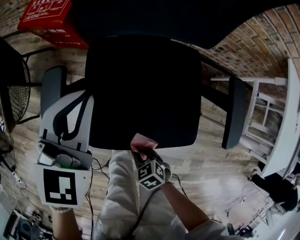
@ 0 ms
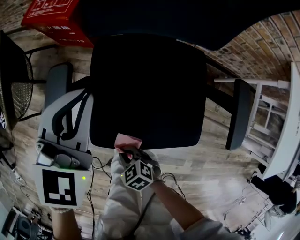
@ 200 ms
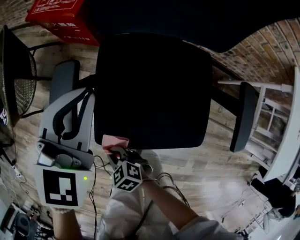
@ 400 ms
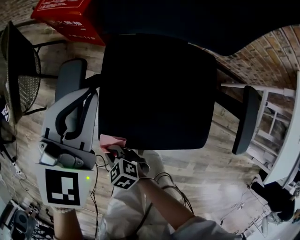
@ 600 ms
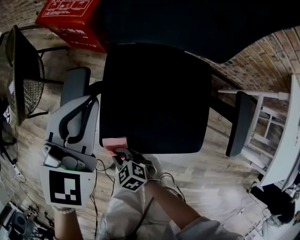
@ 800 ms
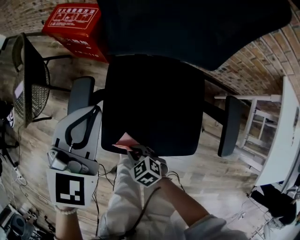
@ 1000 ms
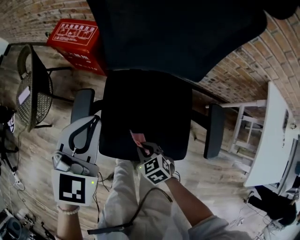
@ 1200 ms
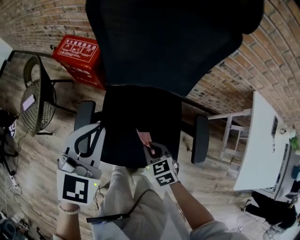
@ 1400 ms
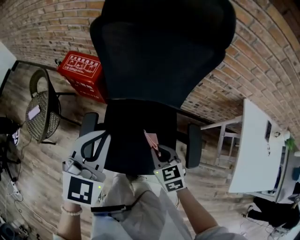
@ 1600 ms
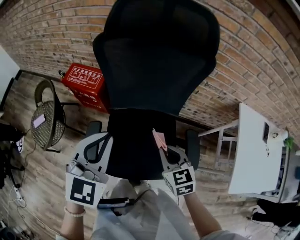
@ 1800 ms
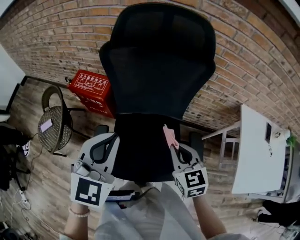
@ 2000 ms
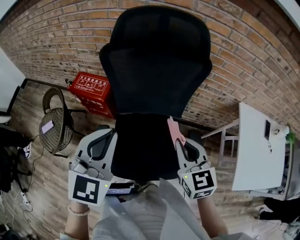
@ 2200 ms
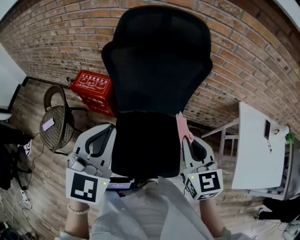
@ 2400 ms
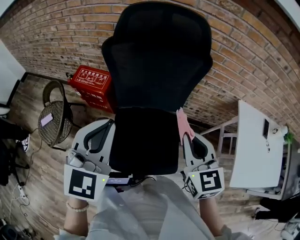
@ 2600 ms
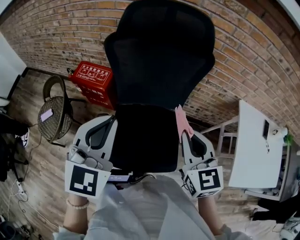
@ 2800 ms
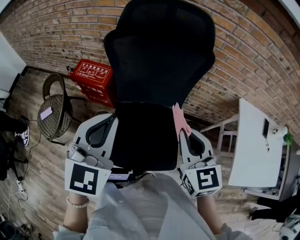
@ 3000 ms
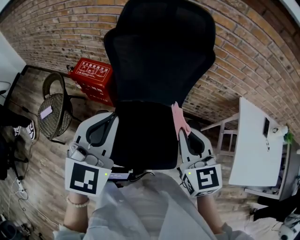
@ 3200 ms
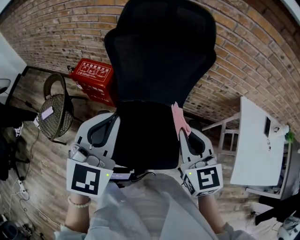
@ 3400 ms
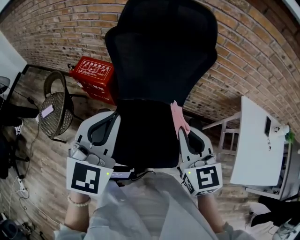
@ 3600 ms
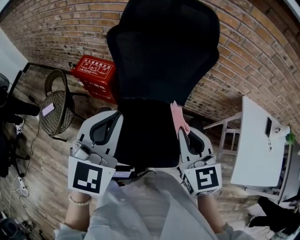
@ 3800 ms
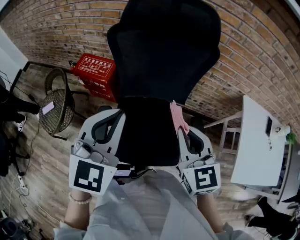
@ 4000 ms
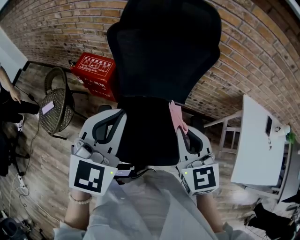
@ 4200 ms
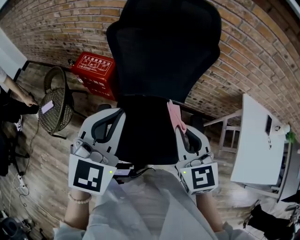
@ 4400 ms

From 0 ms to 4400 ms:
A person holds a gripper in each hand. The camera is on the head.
From 0 ms to 1400 ms: The left gripper travels upward by approximately 20 cm. The right gripper is displaced upward, forward and to the right by roughly 30 cm, and turns by roughly 20 degrees.
From 1400 ms to 3000 ms: The left gripper moves upward, approximately 20 cm; the right gripper goes some 35 cm upward, and points its fingers about 30 degrees further upward.
From 3000 ms to 4400 ms: The grippers move only a little.

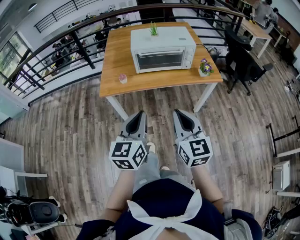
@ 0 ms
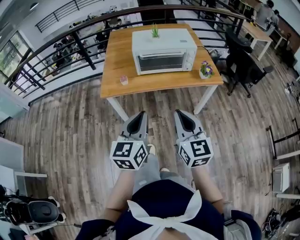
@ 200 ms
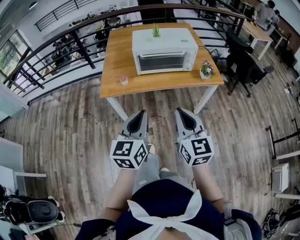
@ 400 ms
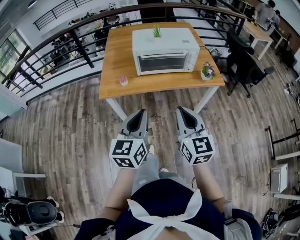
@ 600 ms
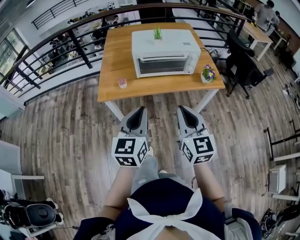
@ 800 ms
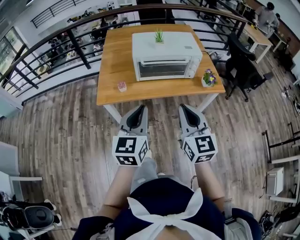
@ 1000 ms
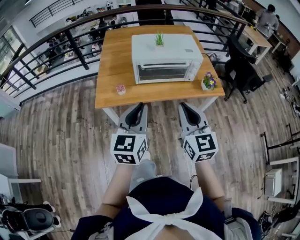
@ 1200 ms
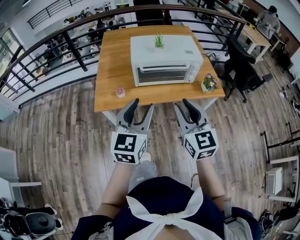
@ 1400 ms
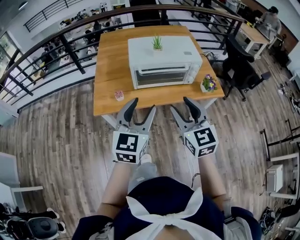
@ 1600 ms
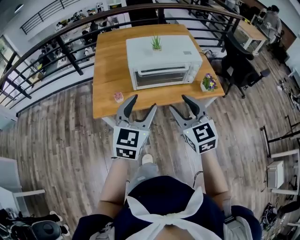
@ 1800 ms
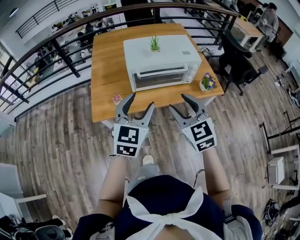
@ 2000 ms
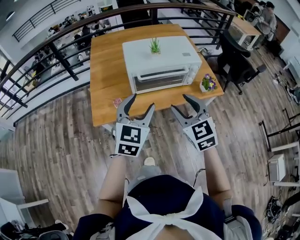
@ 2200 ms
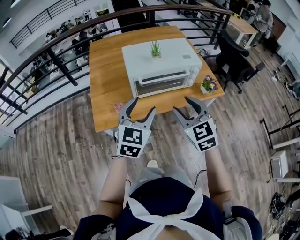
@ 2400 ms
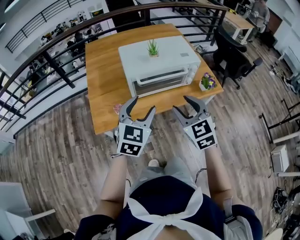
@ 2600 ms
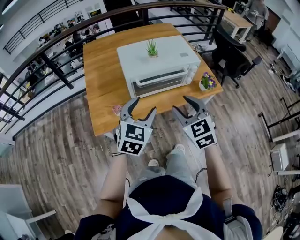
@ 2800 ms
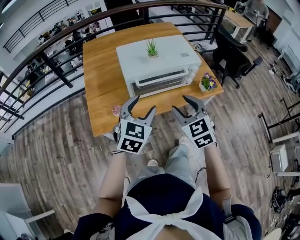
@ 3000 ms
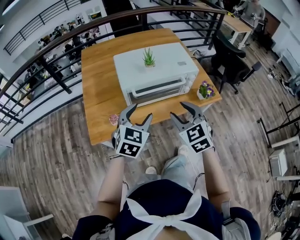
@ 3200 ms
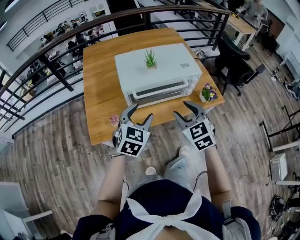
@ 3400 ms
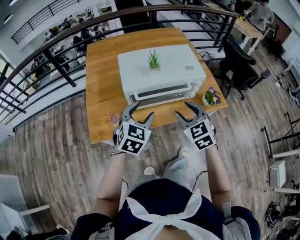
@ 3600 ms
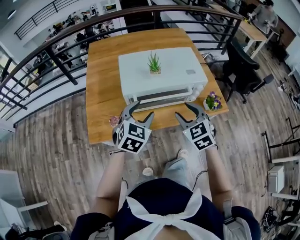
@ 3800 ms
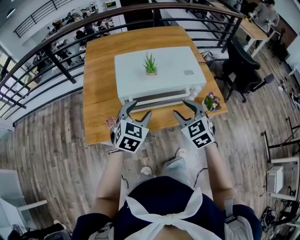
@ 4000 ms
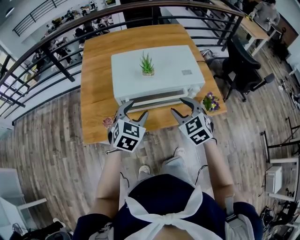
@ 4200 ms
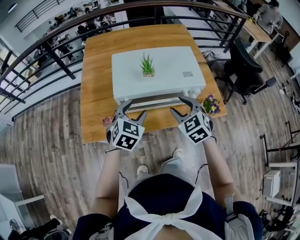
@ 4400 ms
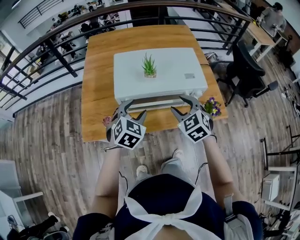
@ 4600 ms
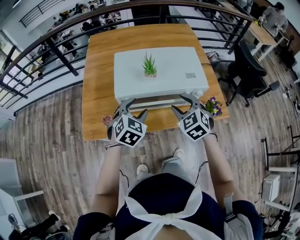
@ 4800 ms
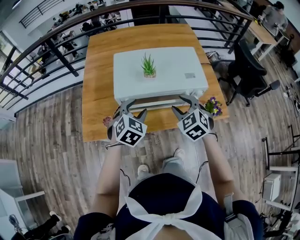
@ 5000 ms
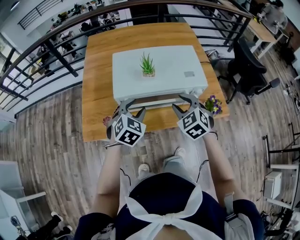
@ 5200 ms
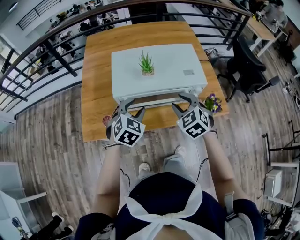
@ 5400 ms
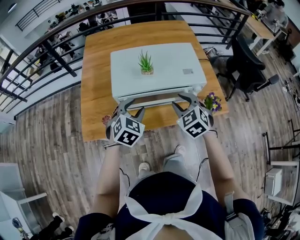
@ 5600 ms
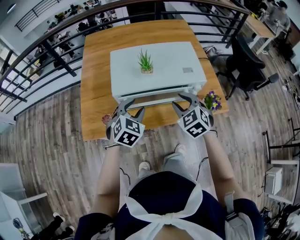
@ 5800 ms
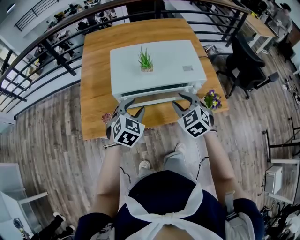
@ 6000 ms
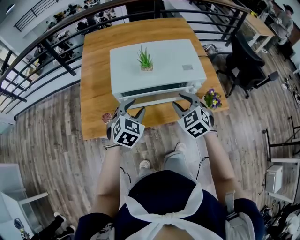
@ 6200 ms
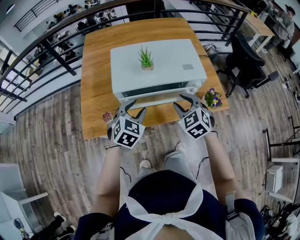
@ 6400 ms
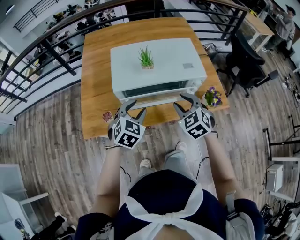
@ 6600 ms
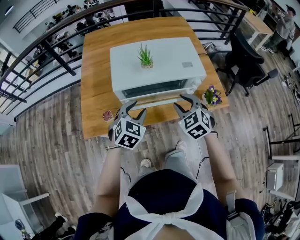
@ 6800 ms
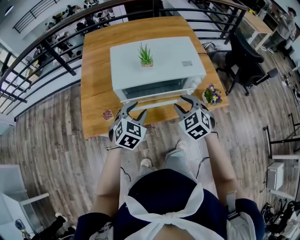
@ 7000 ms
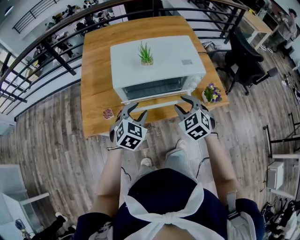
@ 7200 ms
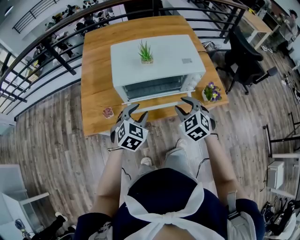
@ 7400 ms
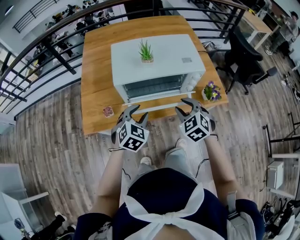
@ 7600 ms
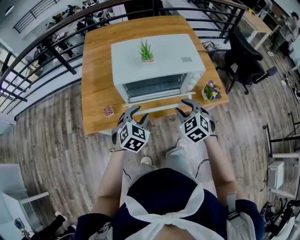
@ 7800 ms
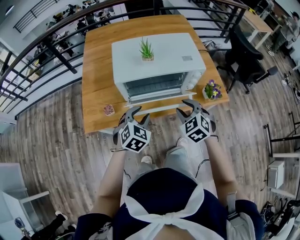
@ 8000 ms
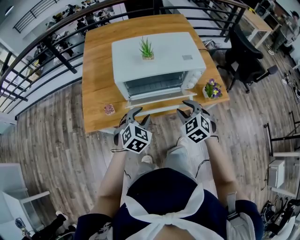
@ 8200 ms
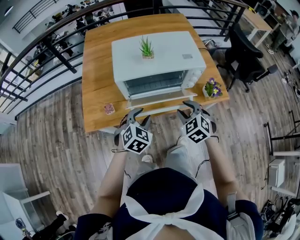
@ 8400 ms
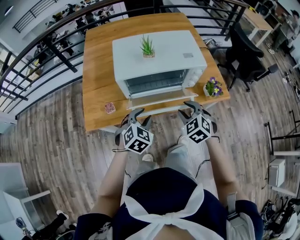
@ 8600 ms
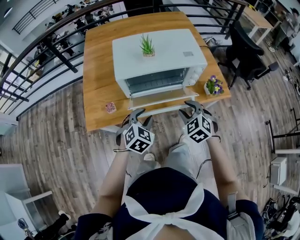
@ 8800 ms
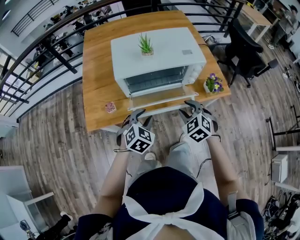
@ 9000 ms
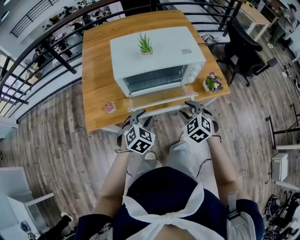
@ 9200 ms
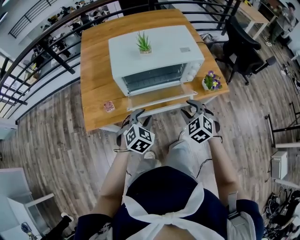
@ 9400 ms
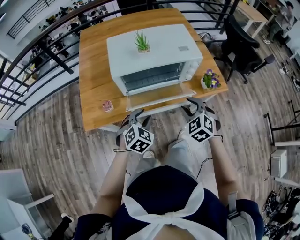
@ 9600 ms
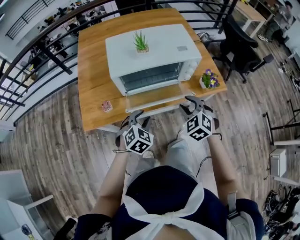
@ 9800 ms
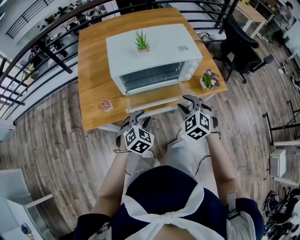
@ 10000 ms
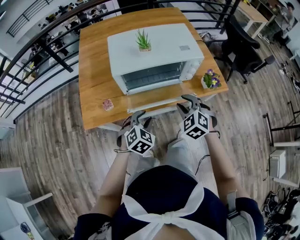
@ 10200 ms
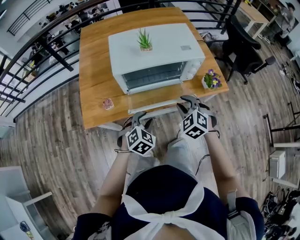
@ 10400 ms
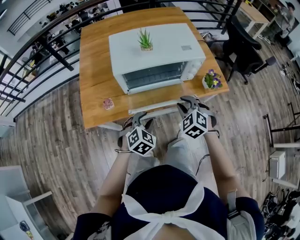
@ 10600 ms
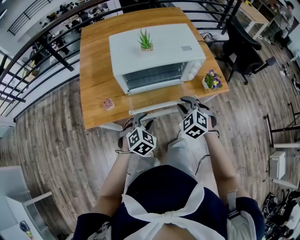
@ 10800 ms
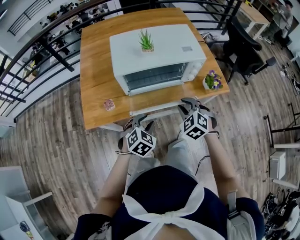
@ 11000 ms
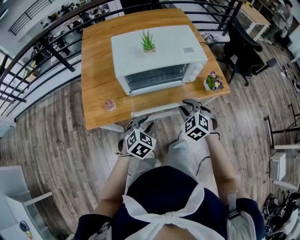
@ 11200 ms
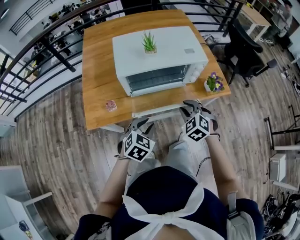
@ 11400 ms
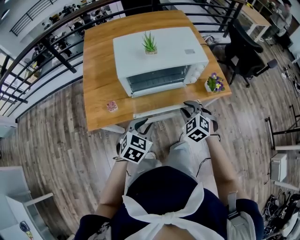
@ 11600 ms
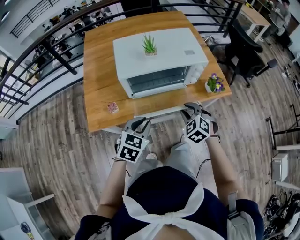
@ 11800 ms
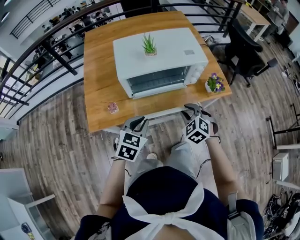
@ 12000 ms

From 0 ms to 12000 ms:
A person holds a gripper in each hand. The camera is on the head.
From 0 ms to 1600 ms: Both grippers travel together forward, about 15 cm. The right gripper opens up; the left gripper opens its fingers.
From 1600 ms to 3000 ms: Both grippers travel together forward and downward, some 10 cm. The left gripper changes its angle by approximately 20 degrees. Meanwhile the right gripper rotates approximately 20 degrees.
From 3000 ms to 4400 ms: The left gripper heads forward and downward, covering some 15 cm. Meanwhile the right gripper heads forward, covering some 15 cm.
From 4400 ms to 6000 ms: The grippers make only small movements.
From 6000 ms to 7600 ms: Both grippers travel together backward, some 5 cm.
From 7600 ms to 9000 ms: The left gripper shifts by some 5 cm. The right gripper changes place by approximately 5 cm.
From 9000 ms to 10400 ms: The grippers make only small movements.
From 10400 ms to 12000 ms: The left gripper heads upward, covering some 5 cm, changes its angle by about 20 degrees, and closes.

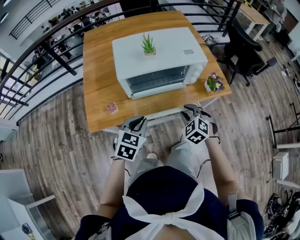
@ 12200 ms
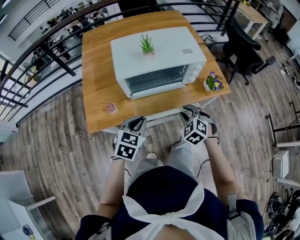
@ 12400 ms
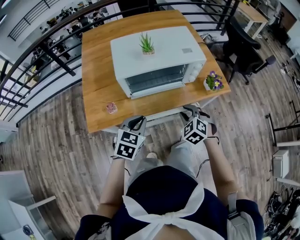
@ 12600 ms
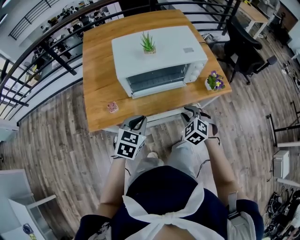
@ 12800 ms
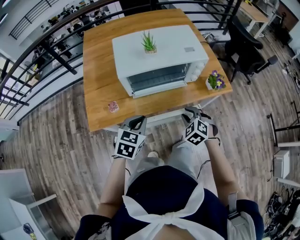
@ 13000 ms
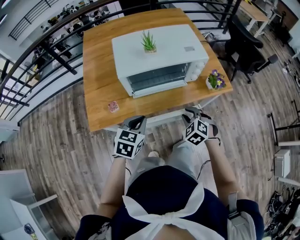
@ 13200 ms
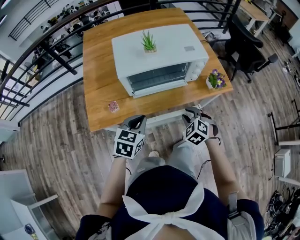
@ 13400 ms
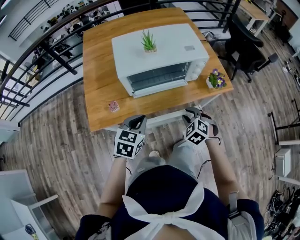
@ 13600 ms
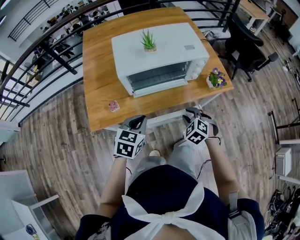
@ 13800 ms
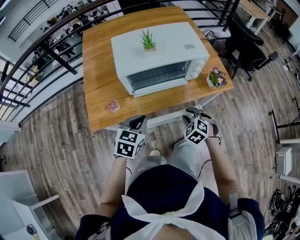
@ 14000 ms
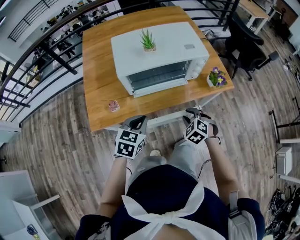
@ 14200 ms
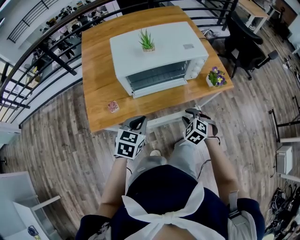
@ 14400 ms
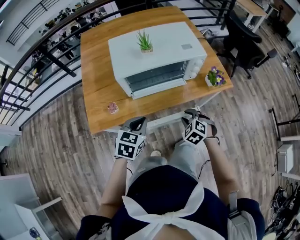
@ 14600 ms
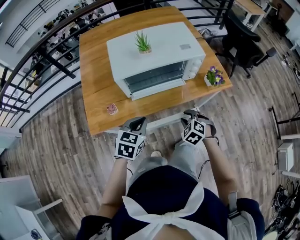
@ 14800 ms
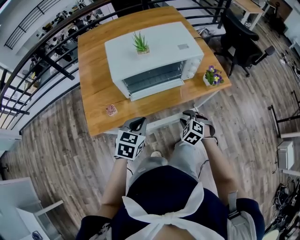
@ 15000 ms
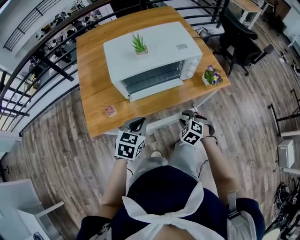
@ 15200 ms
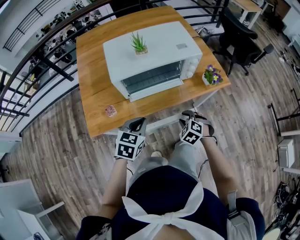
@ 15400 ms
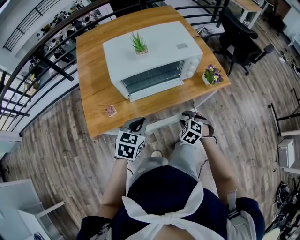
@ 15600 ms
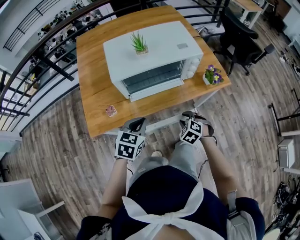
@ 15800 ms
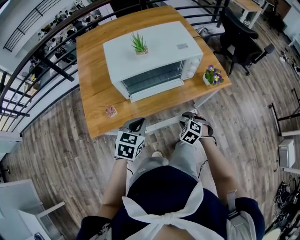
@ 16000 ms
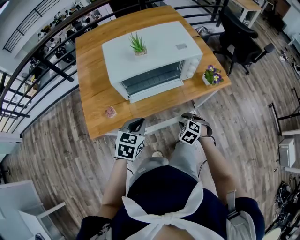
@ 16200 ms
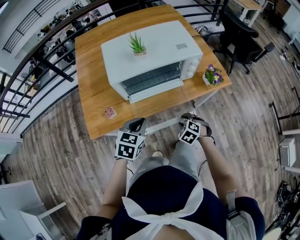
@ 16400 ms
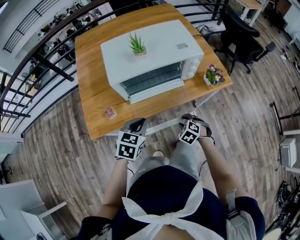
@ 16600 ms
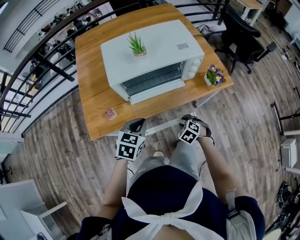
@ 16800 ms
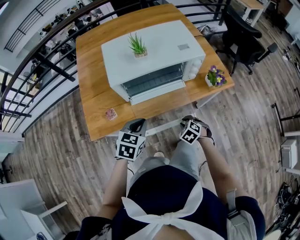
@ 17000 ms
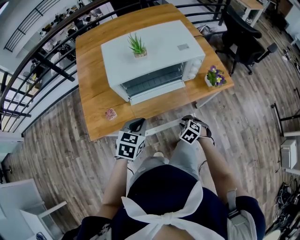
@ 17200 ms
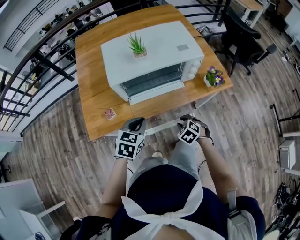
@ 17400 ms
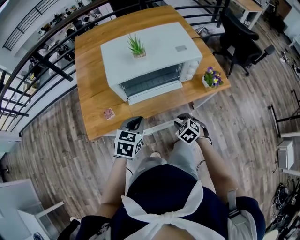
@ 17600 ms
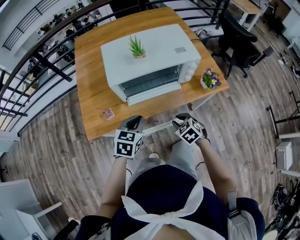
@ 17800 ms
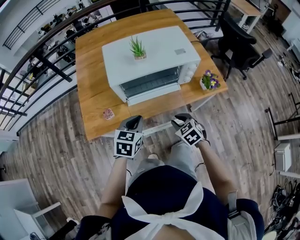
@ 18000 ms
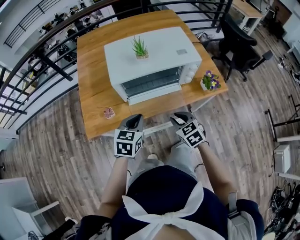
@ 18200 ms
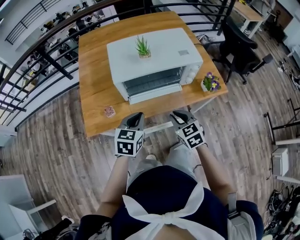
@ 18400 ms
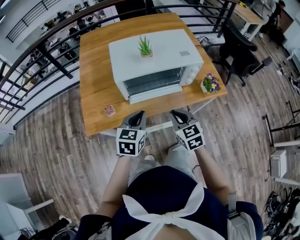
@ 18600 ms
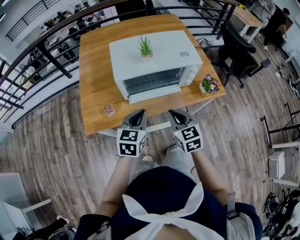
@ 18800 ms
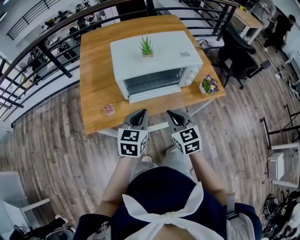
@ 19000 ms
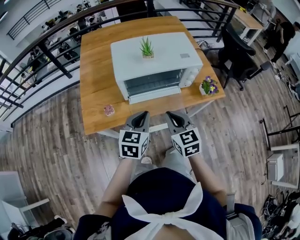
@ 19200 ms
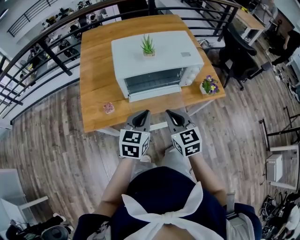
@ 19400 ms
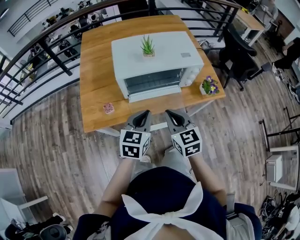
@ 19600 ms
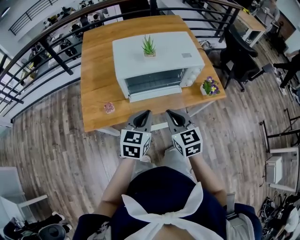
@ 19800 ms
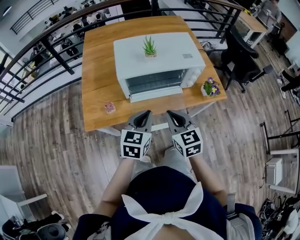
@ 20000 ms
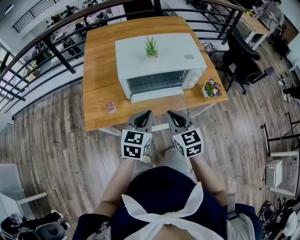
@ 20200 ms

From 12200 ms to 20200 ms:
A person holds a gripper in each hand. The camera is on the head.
From 12200 ms to 13800 ms: The right gripper ends up roughly 5 cm from where it was.
From 13800 ms to 15400 ms: The grippers move only a little.
From 15400 ms to 17000 ms: The right gripper moves downward, about 5 cm.
From 17000 ms to 18600 ms: The right gripper heads upward, covering about 20 cm, and angles its fingers upward, by approximately 40 degrees, while the left gripper goes roughly 5 cm upward.
From 18600 ms to 20200 ms: The right gripper travels upward by some 5 cm.
